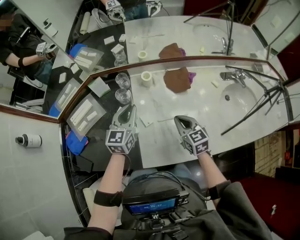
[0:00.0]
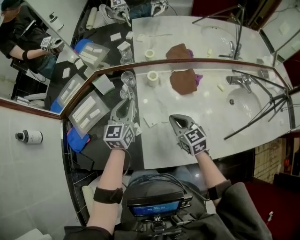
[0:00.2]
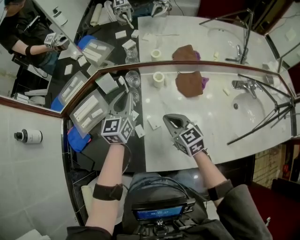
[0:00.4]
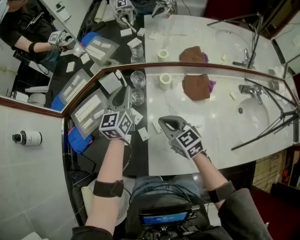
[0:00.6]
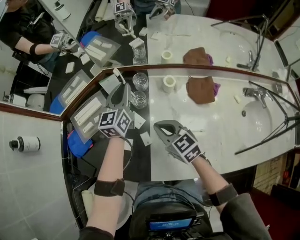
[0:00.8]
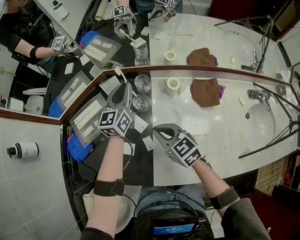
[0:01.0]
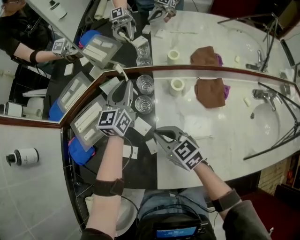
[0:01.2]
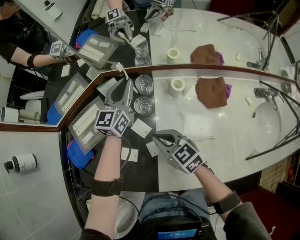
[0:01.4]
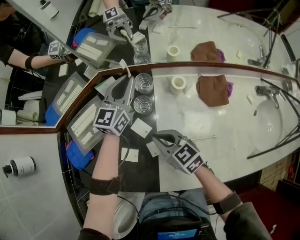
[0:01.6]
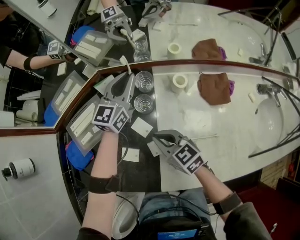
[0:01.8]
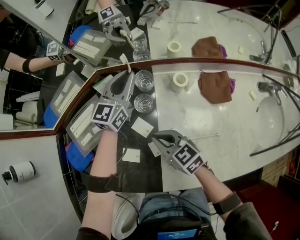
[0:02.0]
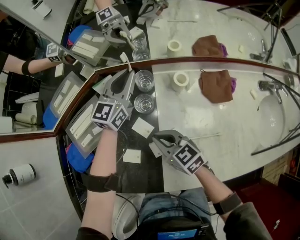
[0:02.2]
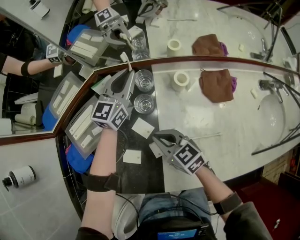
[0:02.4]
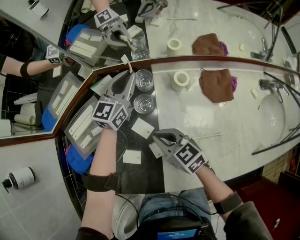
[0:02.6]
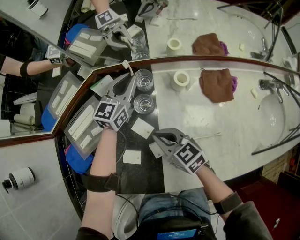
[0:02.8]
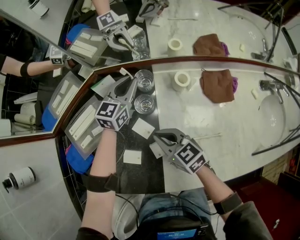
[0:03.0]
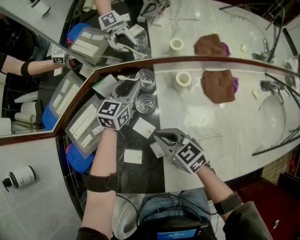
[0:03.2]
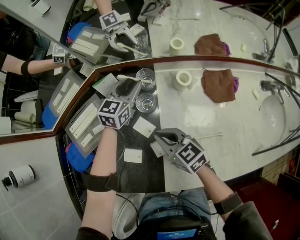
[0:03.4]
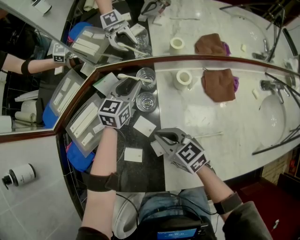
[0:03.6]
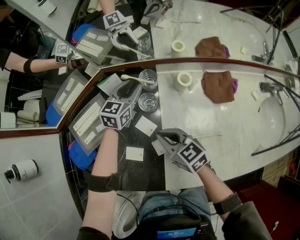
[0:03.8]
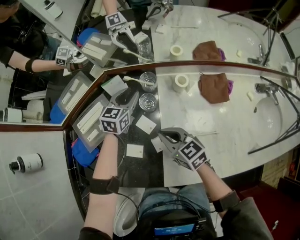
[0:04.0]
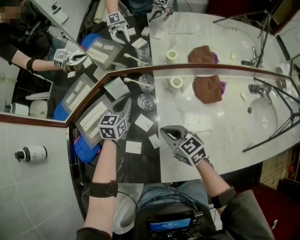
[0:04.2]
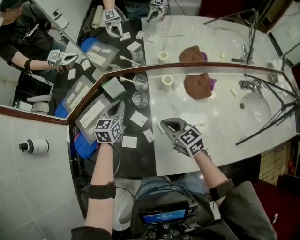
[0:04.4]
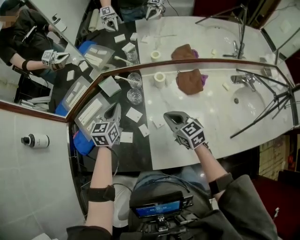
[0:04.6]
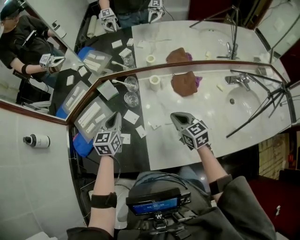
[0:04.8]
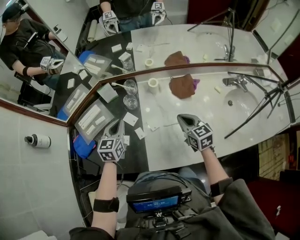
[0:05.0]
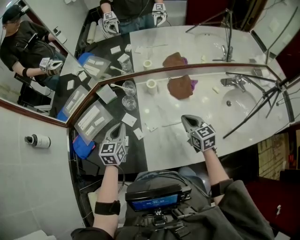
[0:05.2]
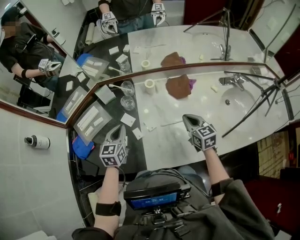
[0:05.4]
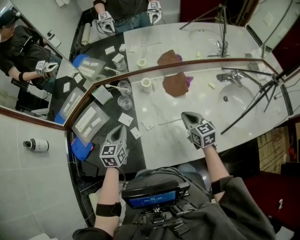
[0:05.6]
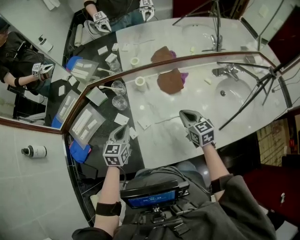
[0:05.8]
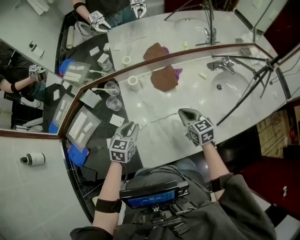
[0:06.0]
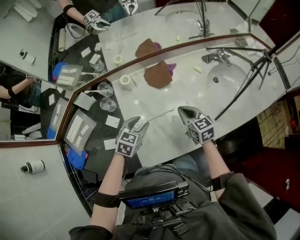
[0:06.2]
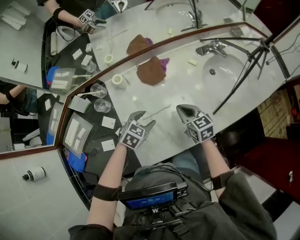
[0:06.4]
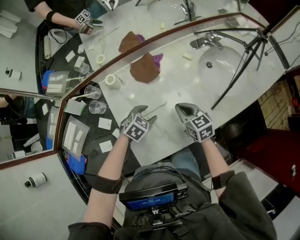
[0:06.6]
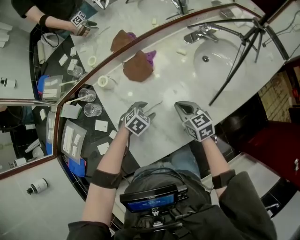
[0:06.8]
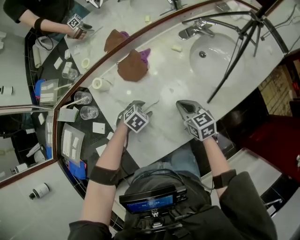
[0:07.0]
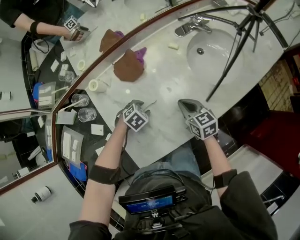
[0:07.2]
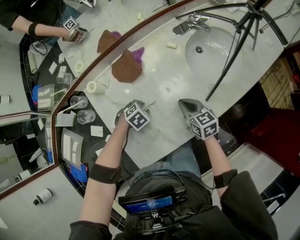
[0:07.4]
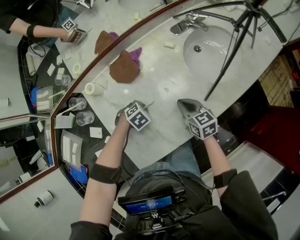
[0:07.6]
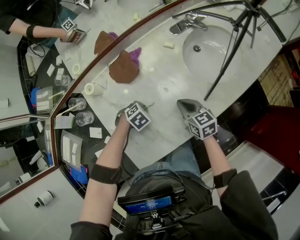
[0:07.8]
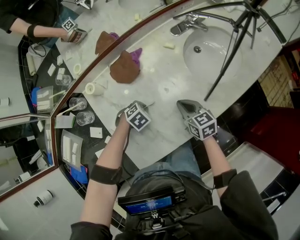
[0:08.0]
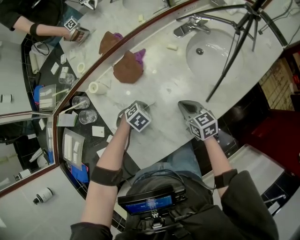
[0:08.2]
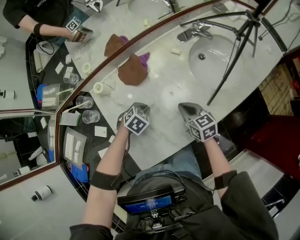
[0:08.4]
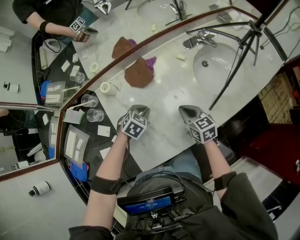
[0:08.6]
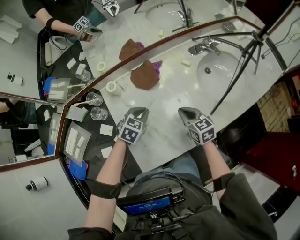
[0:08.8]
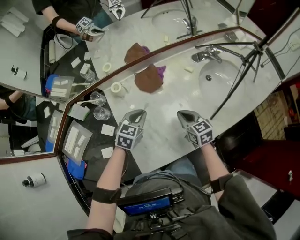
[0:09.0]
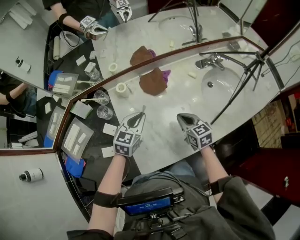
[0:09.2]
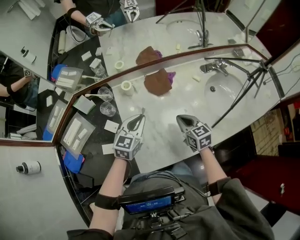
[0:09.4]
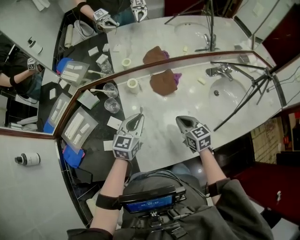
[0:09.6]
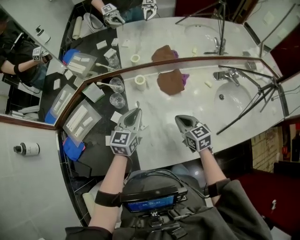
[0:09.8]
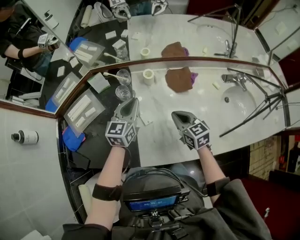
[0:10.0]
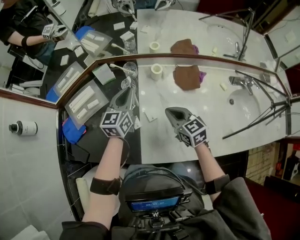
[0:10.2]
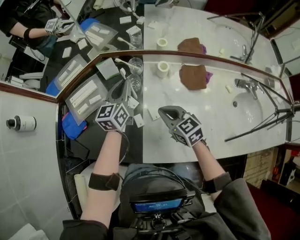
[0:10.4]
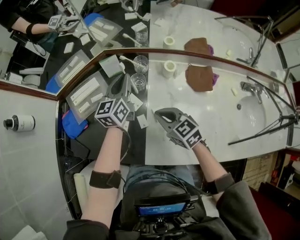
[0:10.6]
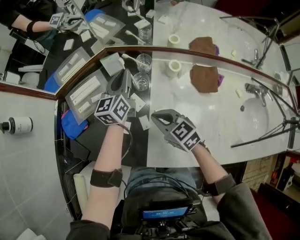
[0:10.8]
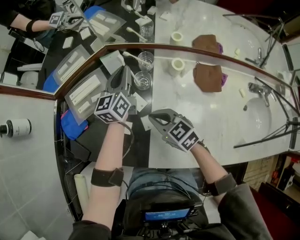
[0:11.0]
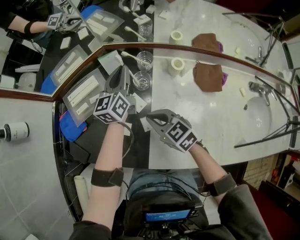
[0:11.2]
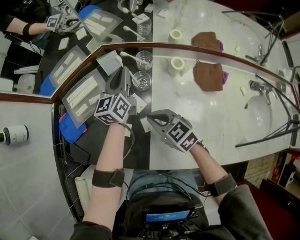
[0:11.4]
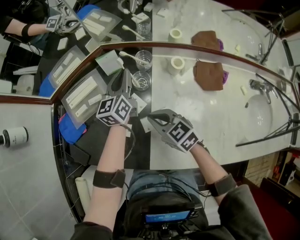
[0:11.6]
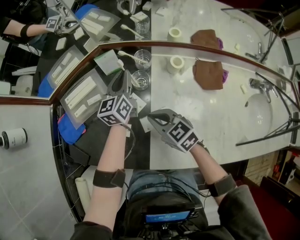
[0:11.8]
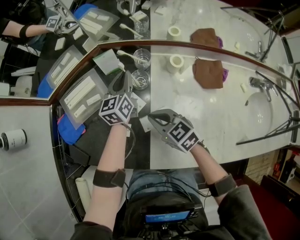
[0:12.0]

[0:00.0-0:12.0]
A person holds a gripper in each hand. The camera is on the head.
0:00.0 to 0:01.6: The left gripper moves forward, roughly 20 cm. Meanwhile the right gripper is displaced to the left and forward by some 25 cm, and turns by some 30 degrees.
0:01.6 to 0:03.0: The left gripper heads downward, covering some 10 cm.
0:03.0 to 0:04.4: The right gripper travels upward and to the right by some 10 cm. Meanwhile the left gripper goes approximately 15 cm backward, to the left and upward, and opens and closes again.
0:04.4 to 0:06.0: The right gripper shifts approximately 25 cm to the right, and changes its angle by some 30 degrees; the left gripper travels to the right and backward by about 25 cm, and rotates about 20 degrees.
0:06.0 to 0:07.6: The right gripper ends up some 15 cm from where it was, while the left gripper shifts by some 30 cm, points its fingers some 40 degrees further downward, and opens and closes again.
0:07.6 to 0:09.0: The right gripper ends up approximately 10 cm from where it was, while the left gripper shifts about 20 cm upward, and tips its fingers upward by roughly 40 degrees.
0:09.0 to 0:10.4: The right gripper moves roughly 30 cm, and rotates some 40 degrees. The left gripper changes place by roughly 30 cm, and rotates about 60 degrees.
0:10.4 to 0:12.0: The right gripper goes roughly 10 cm to the left and downward. The left gripper goes about 10 cm downward and forward.

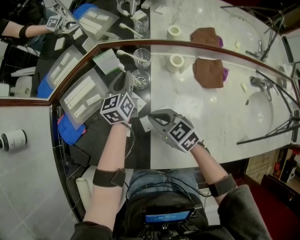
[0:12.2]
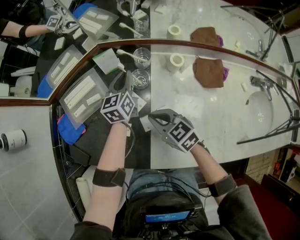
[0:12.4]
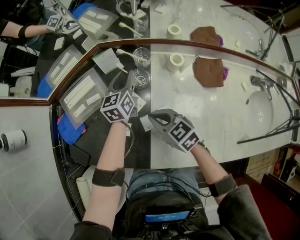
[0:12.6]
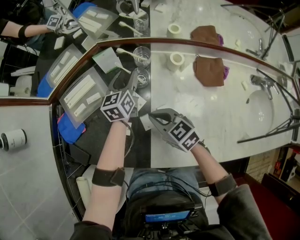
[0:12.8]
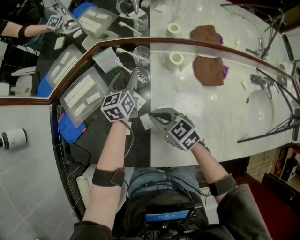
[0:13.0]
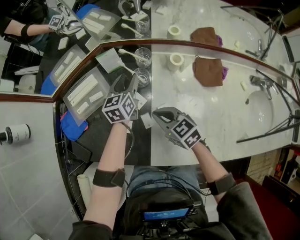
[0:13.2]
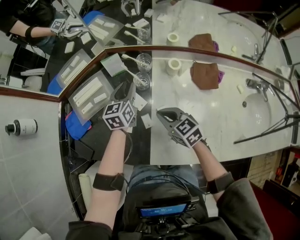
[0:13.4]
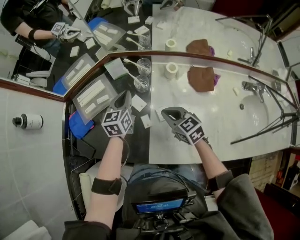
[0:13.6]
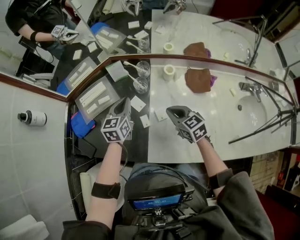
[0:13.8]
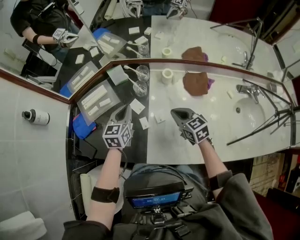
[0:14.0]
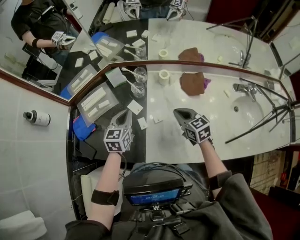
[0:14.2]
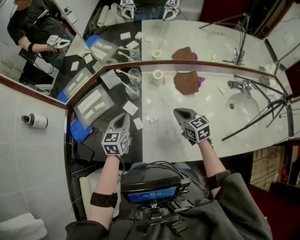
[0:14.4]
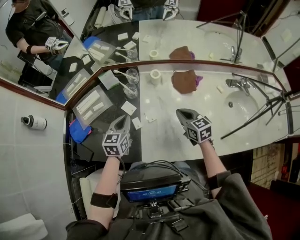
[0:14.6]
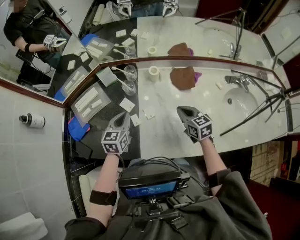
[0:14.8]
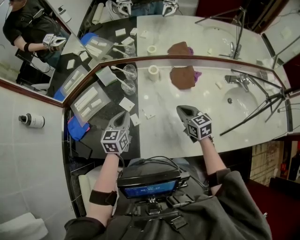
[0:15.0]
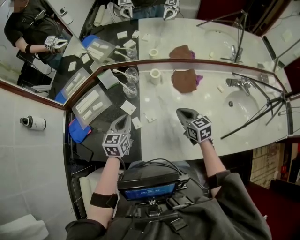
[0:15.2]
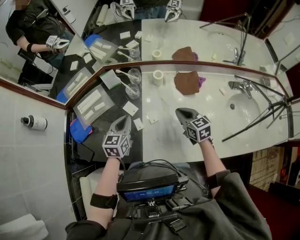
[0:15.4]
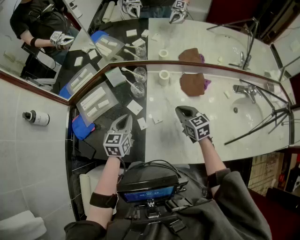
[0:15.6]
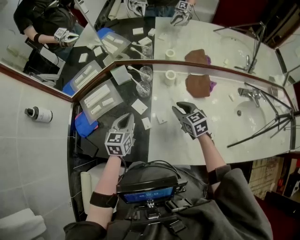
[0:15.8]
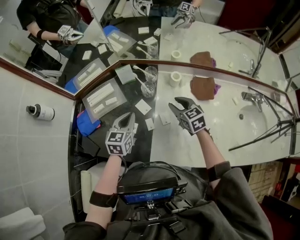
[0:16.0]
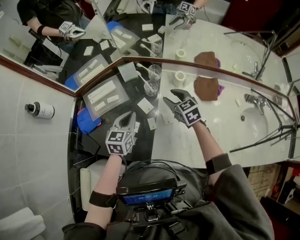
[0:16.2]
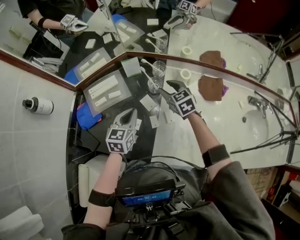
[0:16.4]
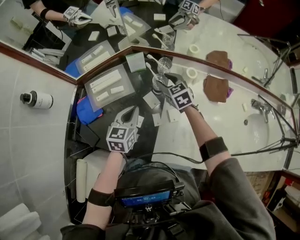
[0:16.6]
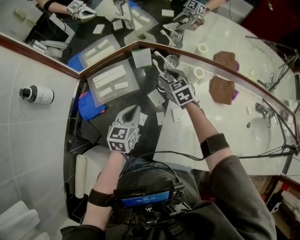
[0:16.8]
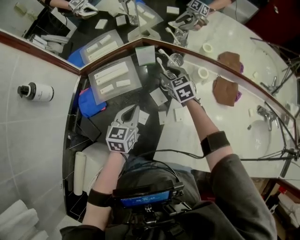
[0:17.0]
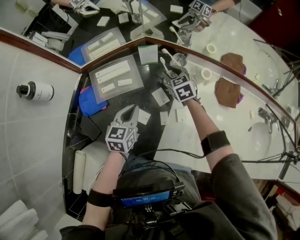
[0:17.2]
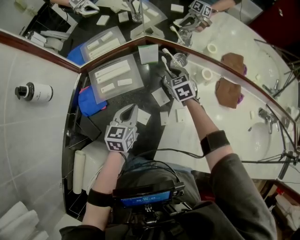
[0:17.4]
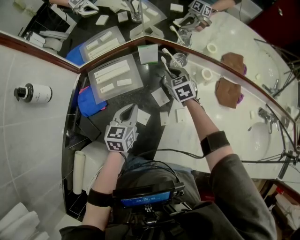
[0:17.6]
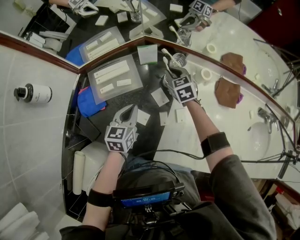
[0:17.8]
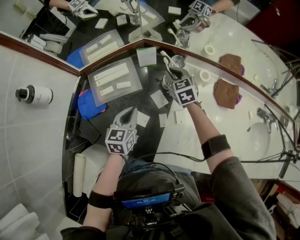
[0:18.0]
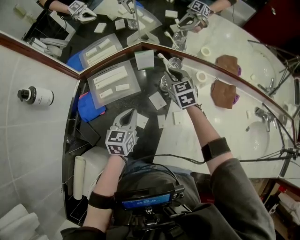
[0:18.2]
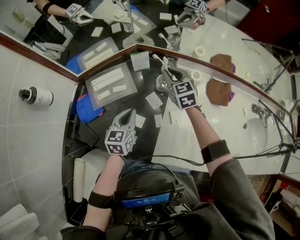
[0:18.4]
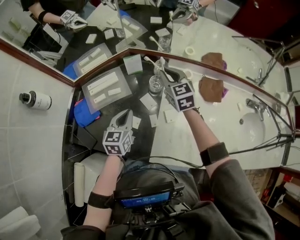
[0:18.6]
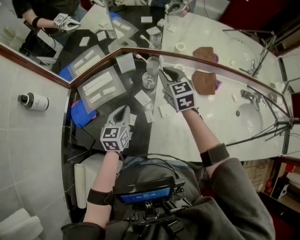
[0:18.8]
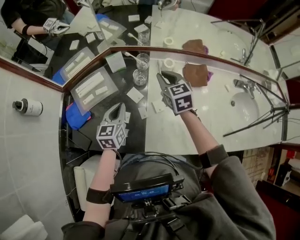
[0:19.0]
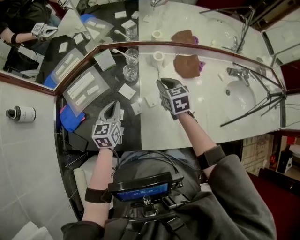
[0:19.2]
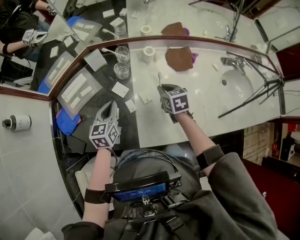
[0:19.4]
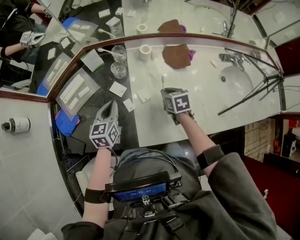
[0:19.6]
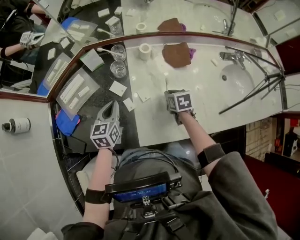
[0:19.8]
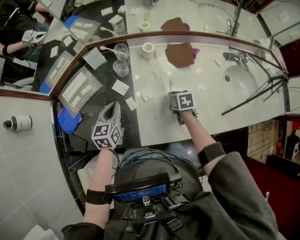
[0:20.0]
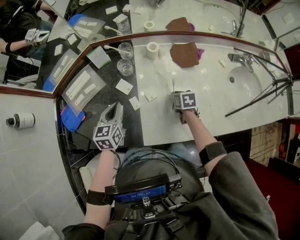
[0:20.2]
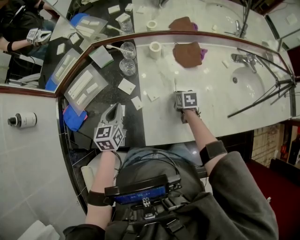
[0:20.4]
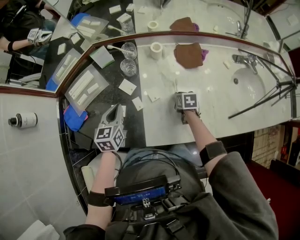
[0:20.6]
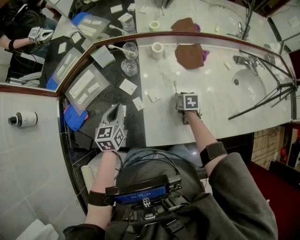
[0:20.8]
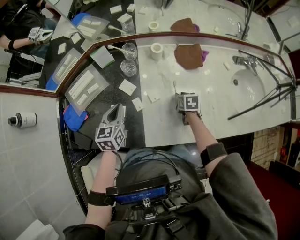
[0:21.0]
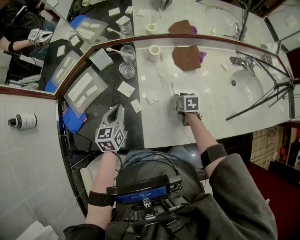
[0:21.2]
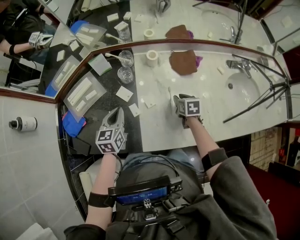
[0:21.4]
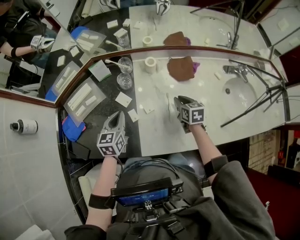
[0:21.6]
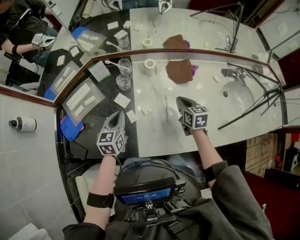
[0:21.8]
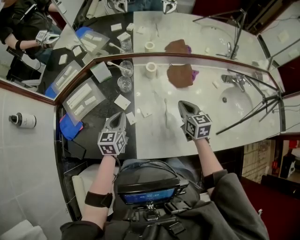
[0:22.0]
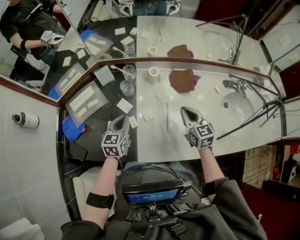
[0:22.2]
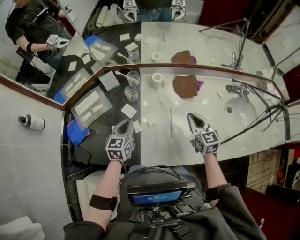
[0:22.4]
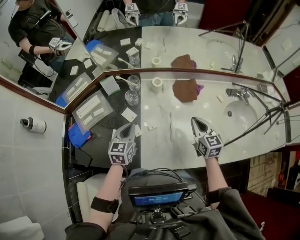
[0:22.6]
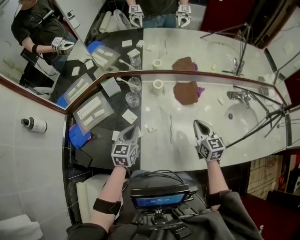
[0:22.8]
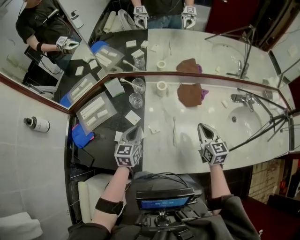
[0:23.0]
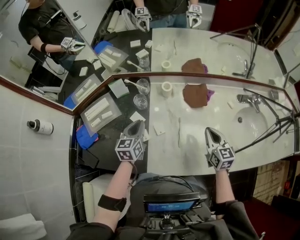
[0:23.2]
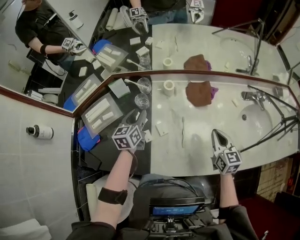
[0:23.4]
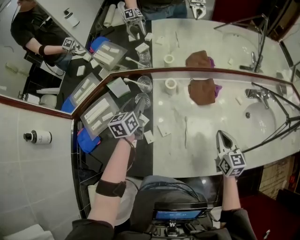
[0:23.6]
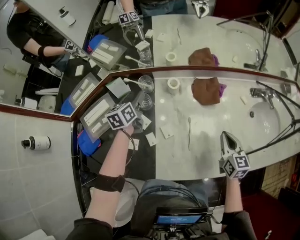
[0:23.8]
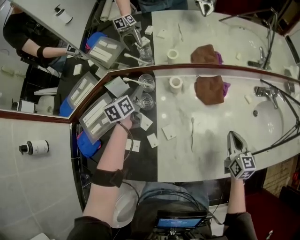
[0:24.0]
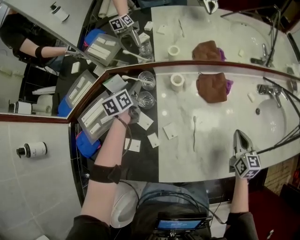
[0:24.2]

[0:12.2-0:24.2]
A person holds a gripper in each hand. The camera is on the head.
0:12.2 to 0:13.8: The right gripper heads to the right, covering about 10 cm; the left gripper travels backward and upward by approximately 15 cm, and opens, then closes again.
0:13.8 to 0:15.2: The right gripper travels to the right by approximately 10 cm; the left gripper is displaced backward by some 10 cm.
0:15.2 to 0:16.6: The left gripper moves to the left, roughly 10 cm; the right gripper heads forward and to the left, covering some 30 cm, turns by roughly 20 degrees, and opens up.
0:16.6 to 0:18.2: The left gripper ends up roughly 5 cm from where it was. Meanwhile the right gripper closes.
0:18.2 to 0:19.8: The left gripper travels to the right by some 10 cm. The right gripper heads backward and to the right, covering approximately 35 cm, and rotates some 50 degrees.
0:19.8 to 0:21.2: The grippers make only small movements.
0:21.2 to 0:22.6: The left gripper is displaced to the right by roughly 5 cm. Meanwhile the right gripper is displaced upward by some 20 cm, angles its fingers upward, by about 30 degrees, and closes.
0:22.6 to 0:24.2: The right gripper travels to the right and downward by about 10 cm. The left gripper goes some 25 cm forward, changes its angle by about 30 degrees, and opens its fingers.
